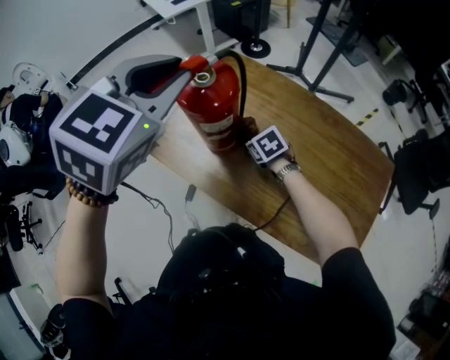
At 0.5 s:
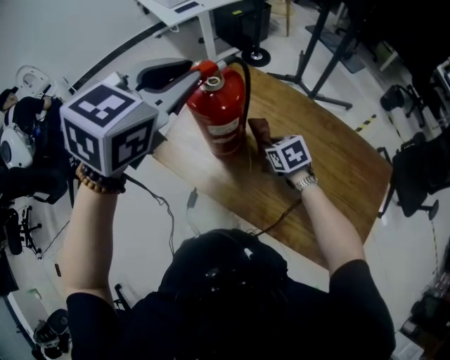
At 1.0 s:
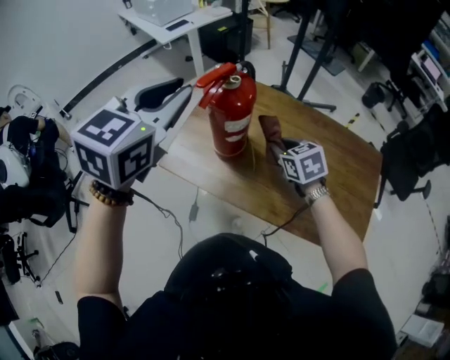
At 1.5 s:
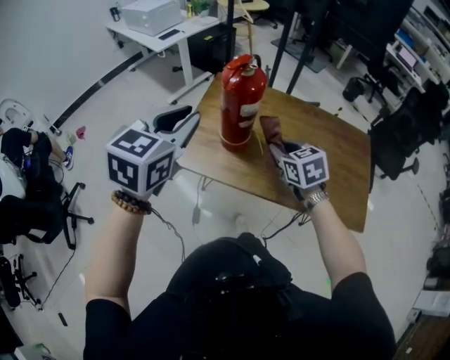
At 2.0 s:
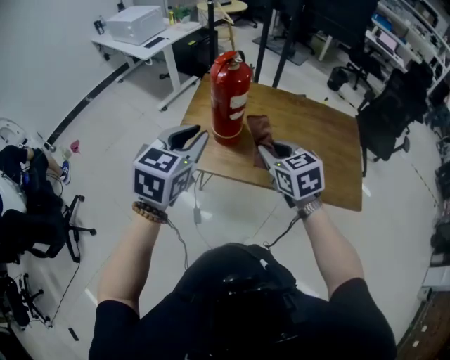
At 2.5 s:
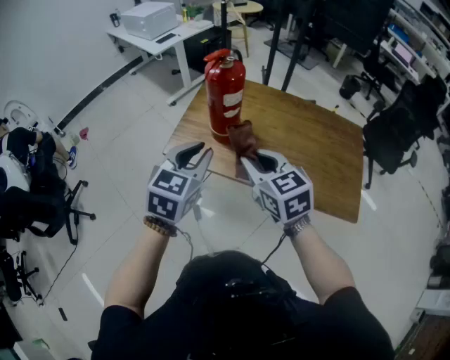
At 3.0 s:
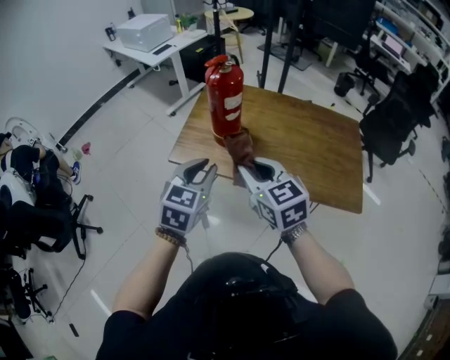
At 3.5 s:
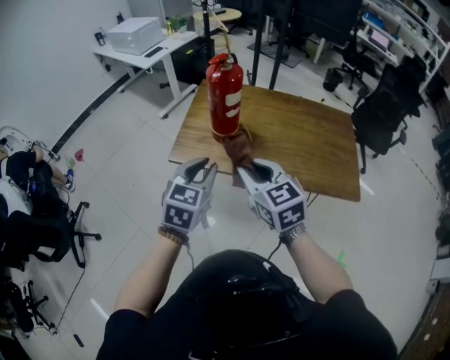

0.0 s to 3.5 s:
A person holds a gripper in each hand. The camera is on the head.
0.0 to 2.0 s: The right gripper goes roughly 25 cm upward, and tilts its fingers some 30 degrees upward; the left gripper moves some 25 cm, and turns by some 20 degrees.
2.0 to 3.5 s: The right gripper goes about 10 cm backward and to the left, while the left gripper heads backward and downward, covering about 10 cm.

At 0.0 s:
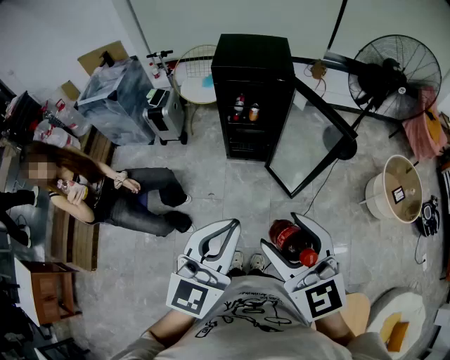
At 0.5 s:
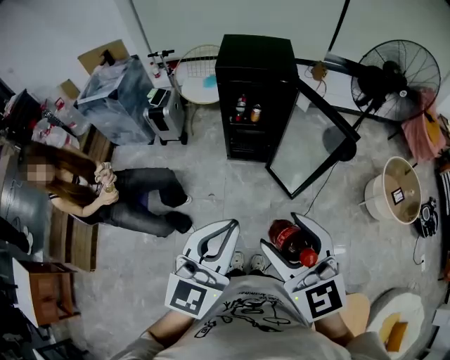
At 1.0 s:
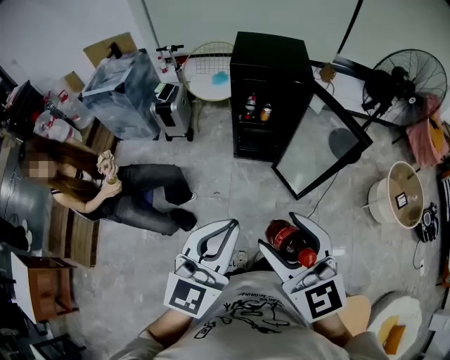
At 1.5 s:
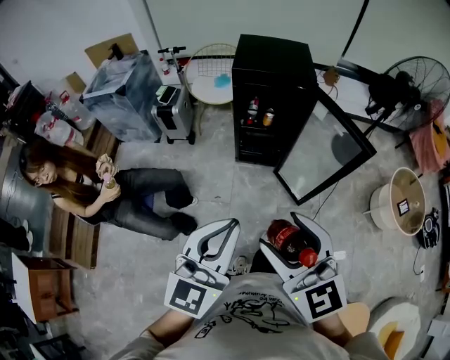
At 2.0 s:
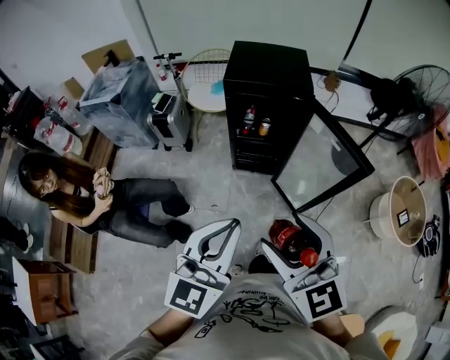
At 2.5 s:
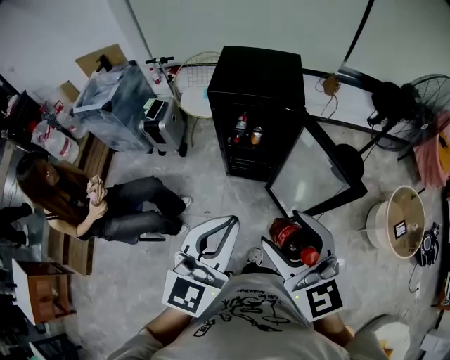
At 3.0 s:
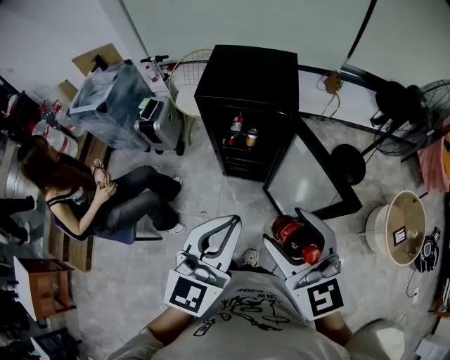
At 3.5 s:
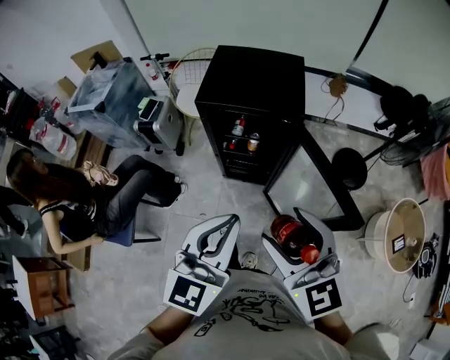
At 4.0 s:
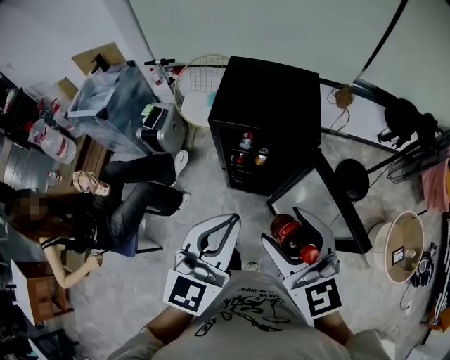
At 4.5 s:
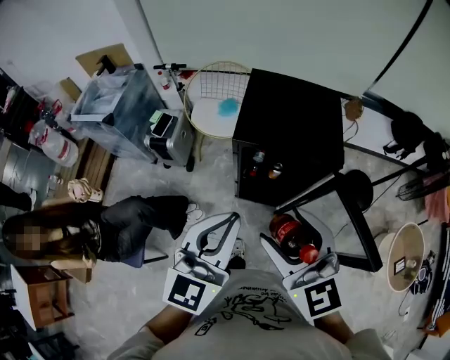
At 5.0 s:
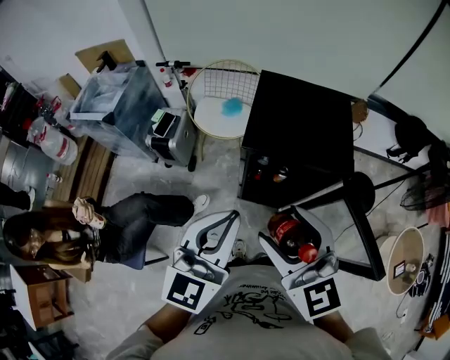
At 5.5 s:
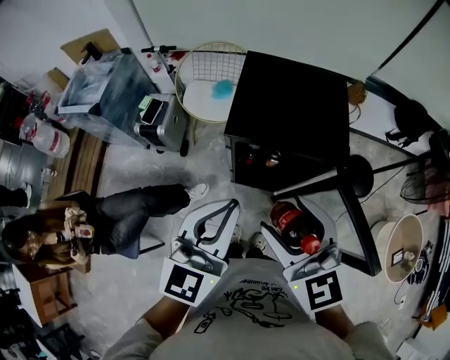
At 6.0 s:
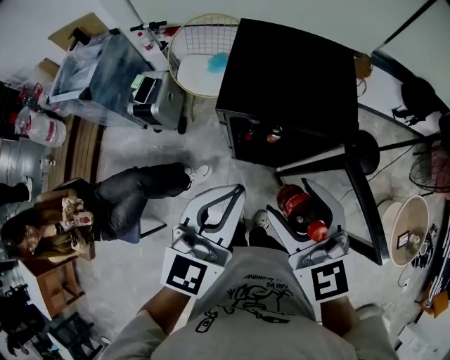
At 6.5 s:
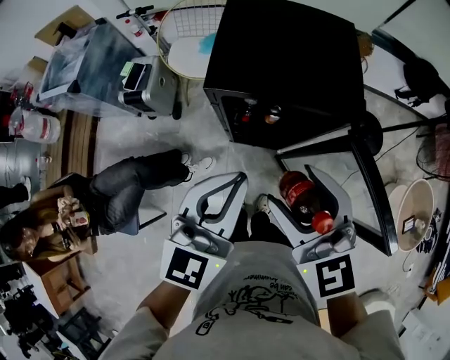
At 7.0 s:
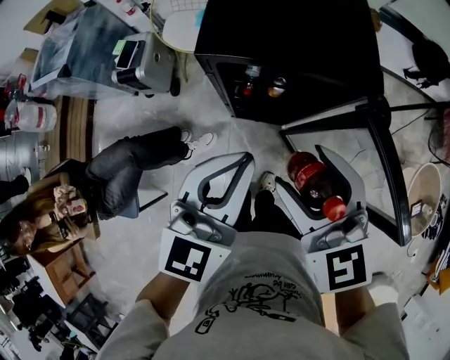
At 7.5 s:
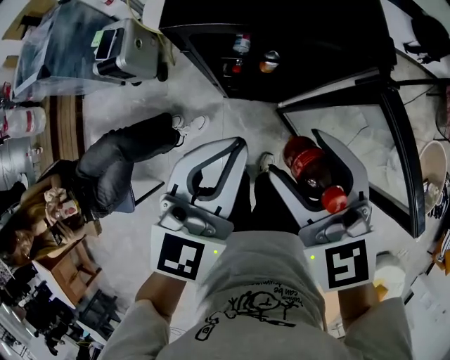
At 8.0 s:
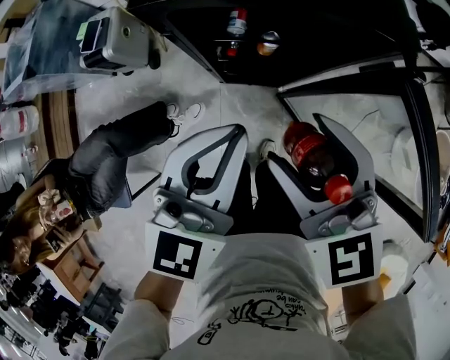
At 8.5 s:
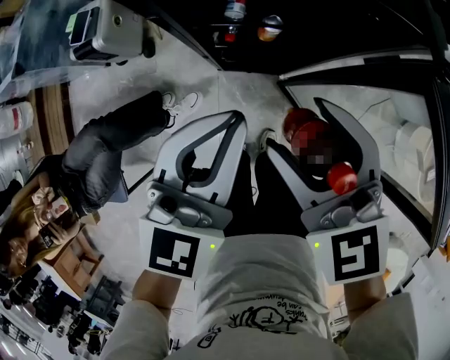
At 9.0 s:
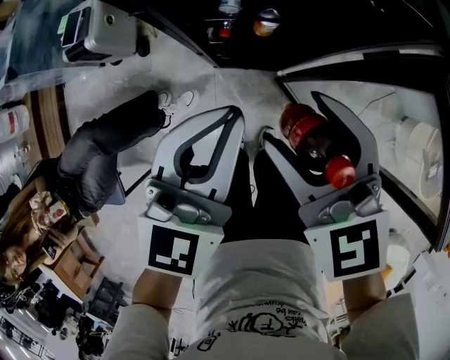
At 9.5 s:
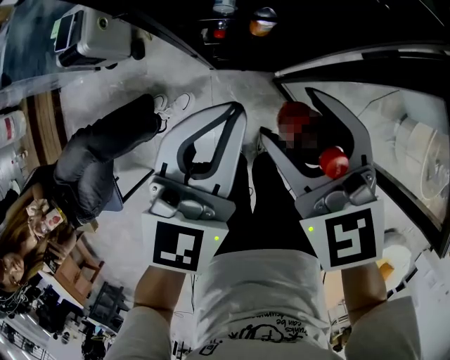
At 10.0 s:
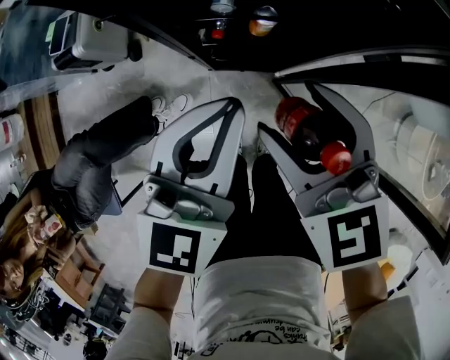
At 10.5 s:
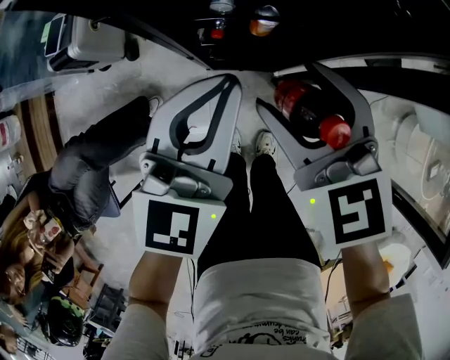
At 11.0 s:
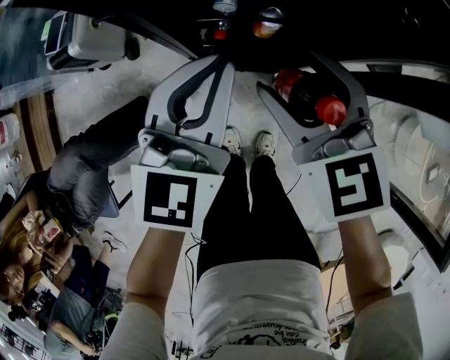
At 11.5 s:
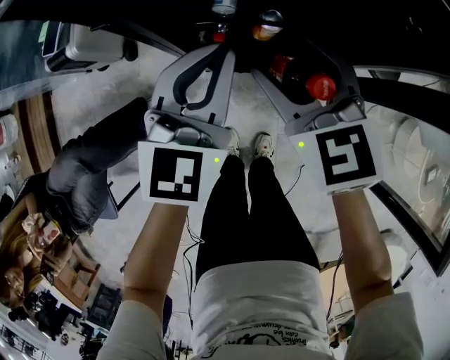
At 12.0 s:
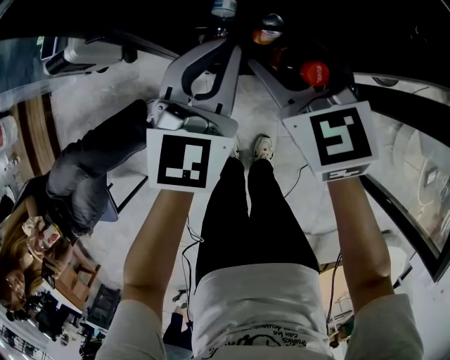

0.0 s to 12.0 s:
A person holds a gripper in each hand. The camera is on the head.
0.0 to 2.0 s: The two grippers go approximately 10 cm forward.
2.0 to 4.0 s: The grippers both shift forward by approximately 25 cm.
4.0 to 6.0 s: The right gripper moves forward and downward, about 15 cm; the left gripper travels forward by about 15 cm.
6.0 to 8.0 s: The two grippers go approximately 15 cm downward.
8.0 to 10.0 s: Both grippers travel together downward, about 10 cm.
10.0 to 12.0 s: The two grippers go some 15 cm forward and downward.

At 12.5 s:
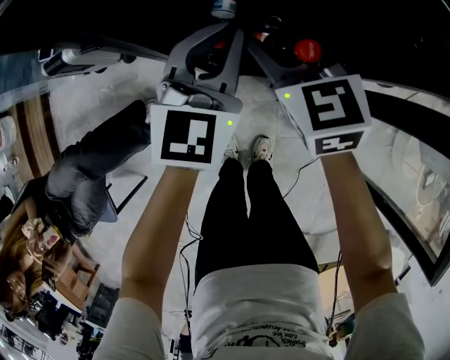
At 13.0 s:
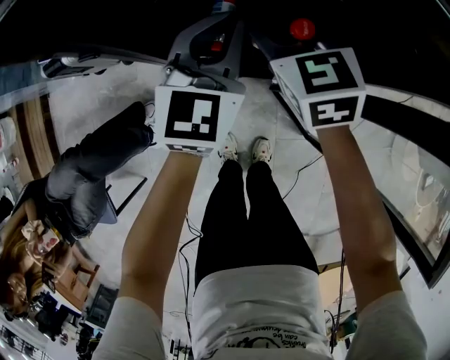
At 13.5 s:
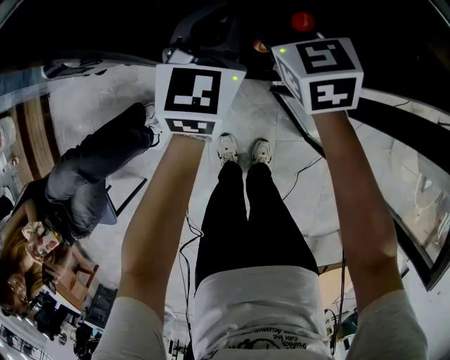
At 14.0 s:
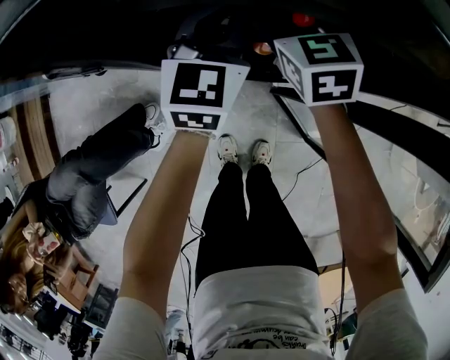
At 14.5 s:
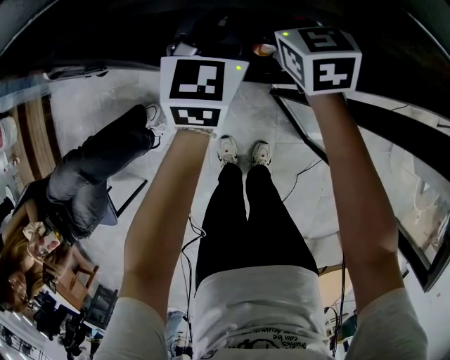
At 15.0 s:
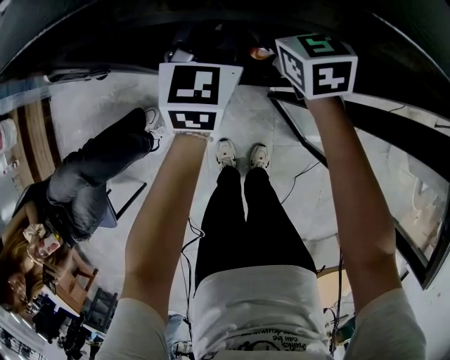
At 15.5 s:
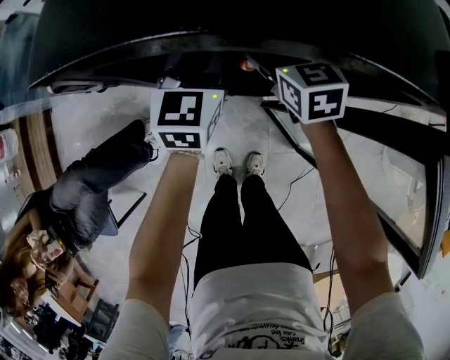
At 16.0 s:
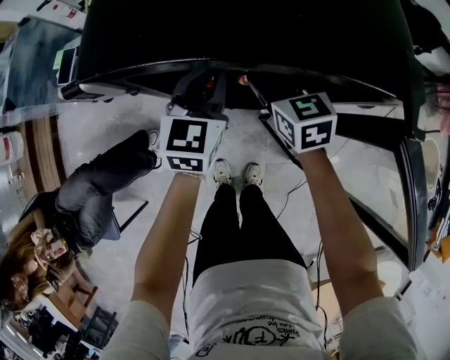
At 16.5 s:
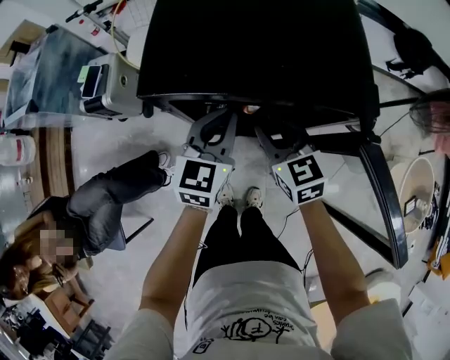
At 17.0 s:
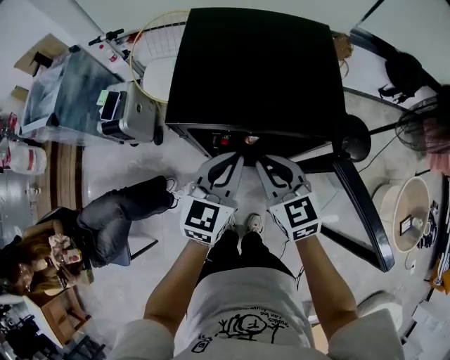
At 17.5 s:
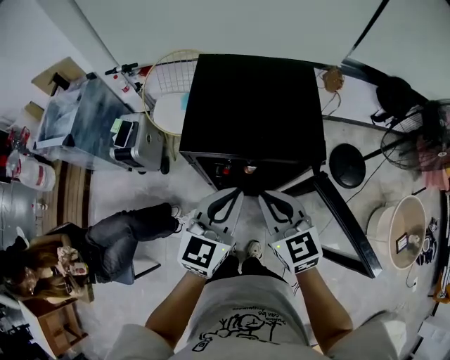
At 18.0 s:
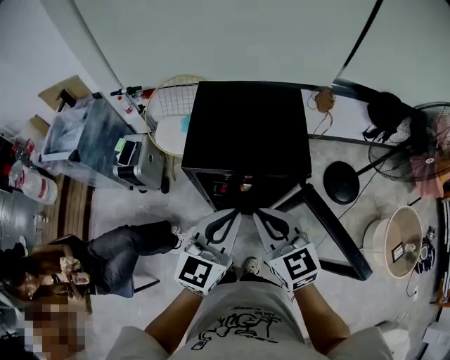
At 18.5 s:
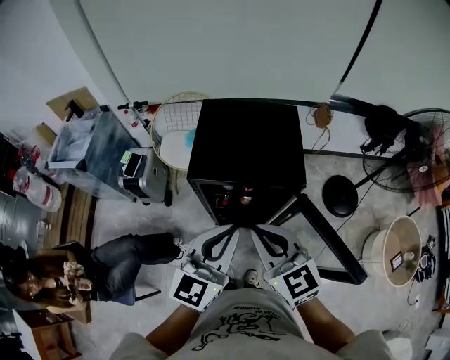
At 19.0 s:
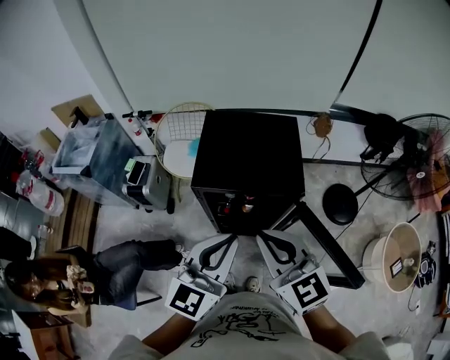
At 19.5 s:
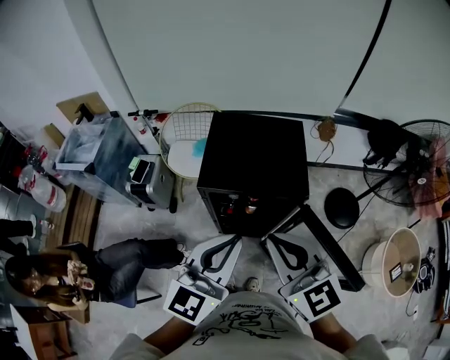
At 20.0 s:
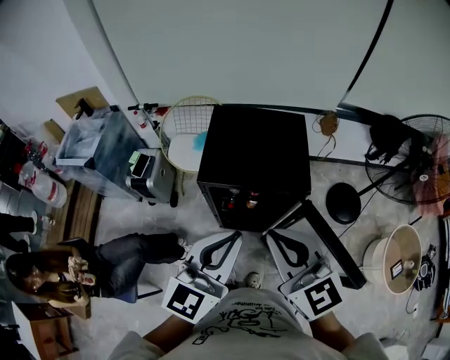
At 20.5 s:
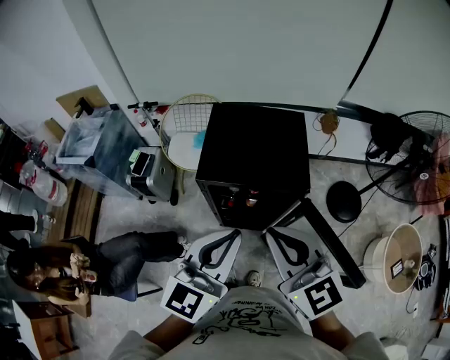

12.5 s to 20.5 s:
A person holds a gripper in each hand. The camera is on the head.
12.5 to 14.5 s: Both grippers move forward, some 10 cm.
14.5 to 16.5 s: The two grippers go roughly 15 cm backward and upward. The right gripper closes.
16.5 to 18.5 s: The two grippers go some 30 cm upward and backward.
18.5 to 20.5 s: The left gripper goes some 5 cm upward. The right gripper is displaced upward by about 10 cm.

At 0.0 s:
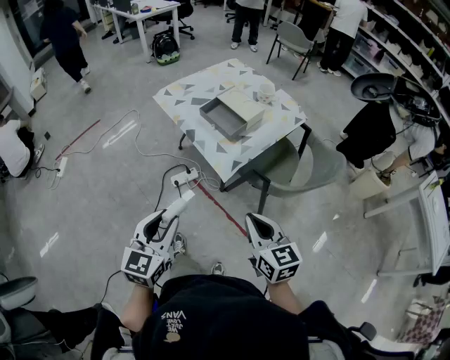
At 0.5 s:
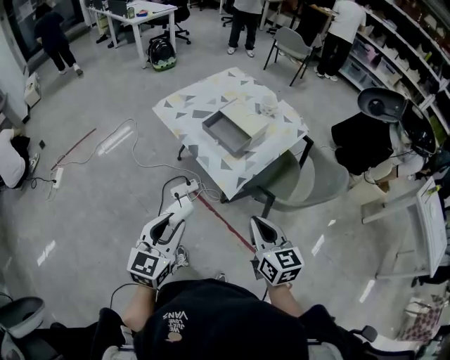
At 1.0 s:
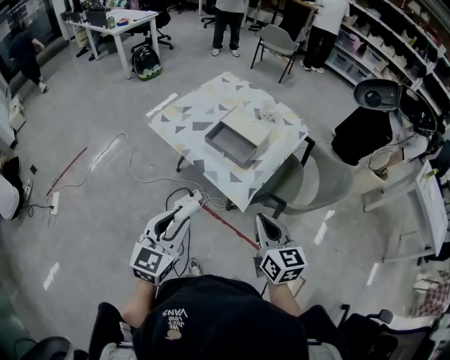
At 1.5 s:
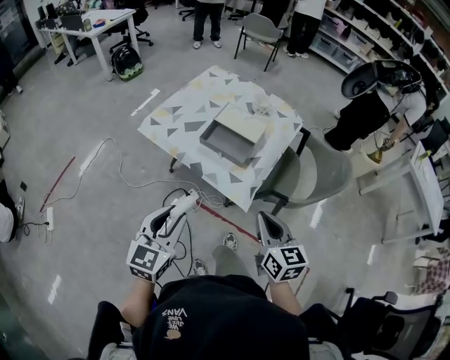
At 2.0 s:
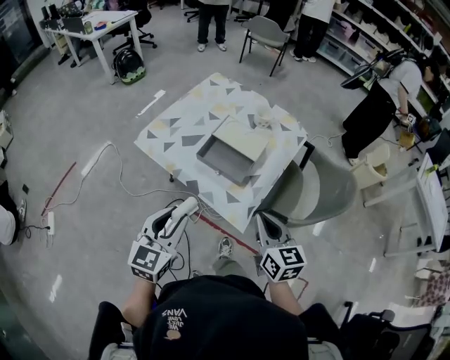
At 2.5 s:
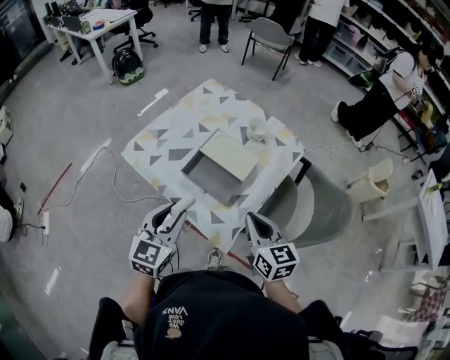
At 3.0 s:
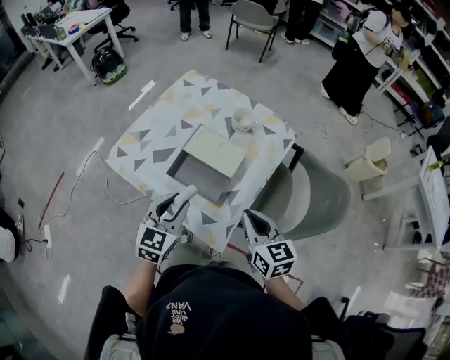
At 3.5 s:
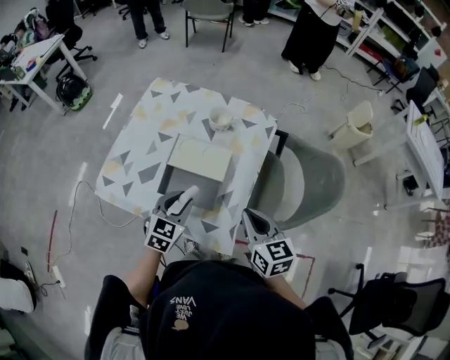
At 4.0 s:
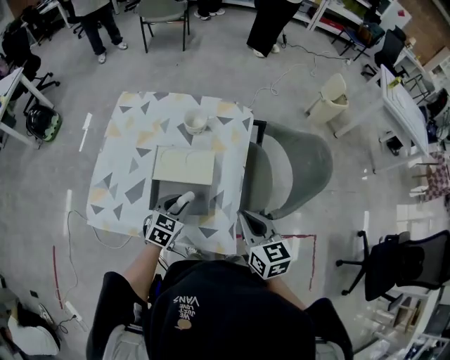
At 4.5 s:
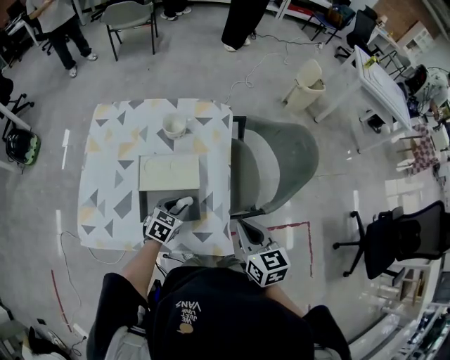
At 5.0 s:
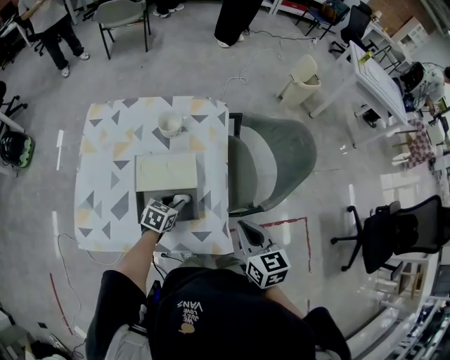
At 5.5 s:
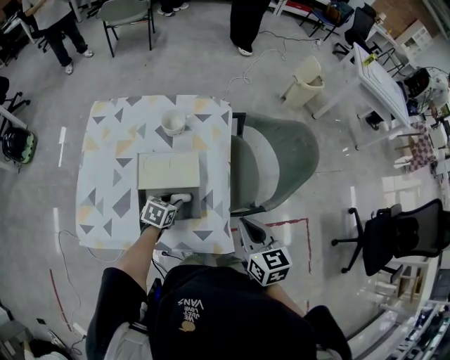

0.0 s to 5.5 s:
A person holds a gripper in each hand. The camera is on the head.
0.0 to 2.0 s: The right gripper moves forward and to the left, roughly 25 cm, and changes its angle by approximately 20 degrees, while the left gripper travels forward by approximately 30 cm.
2.0 to 3.5 s: The left gripper shifts about 30 cm forward, downward and to the right, and turns by roughly 30 degrees. The right gripper goes approximately 15 cm forward and to the right.
3.5 to 5.5 s: The right gripper changes its angle by approximately 20 degrees; the left gripper goes roughly 15 cm downward, and changes its angle by about 40 degrees.
